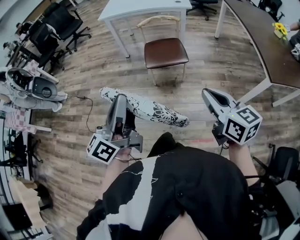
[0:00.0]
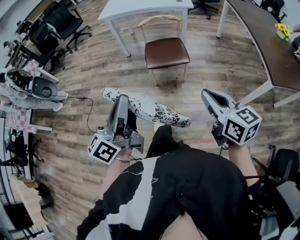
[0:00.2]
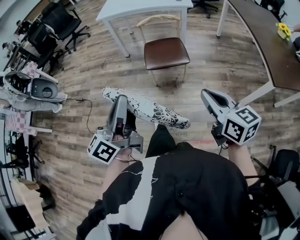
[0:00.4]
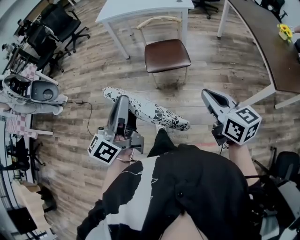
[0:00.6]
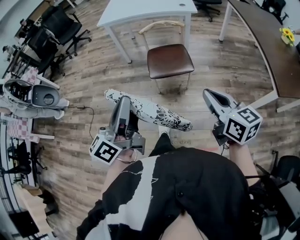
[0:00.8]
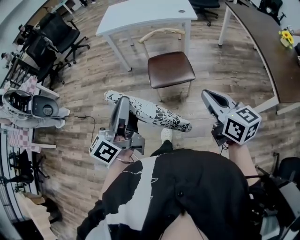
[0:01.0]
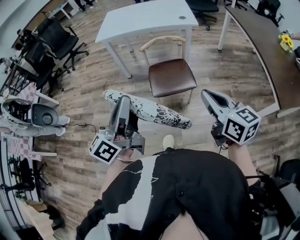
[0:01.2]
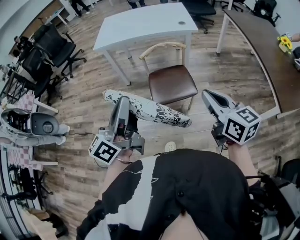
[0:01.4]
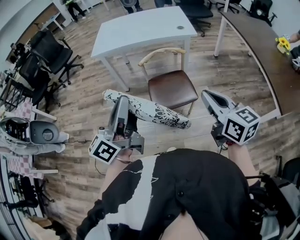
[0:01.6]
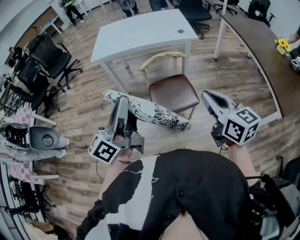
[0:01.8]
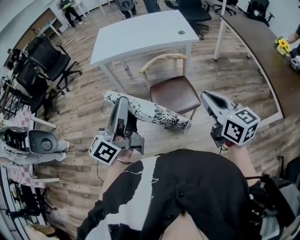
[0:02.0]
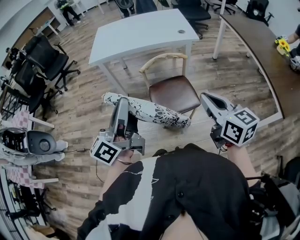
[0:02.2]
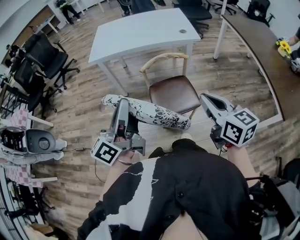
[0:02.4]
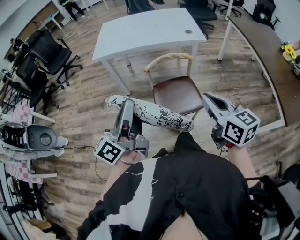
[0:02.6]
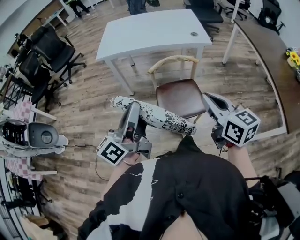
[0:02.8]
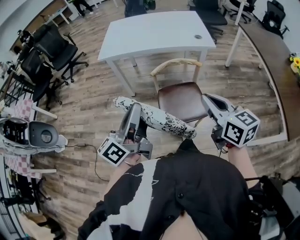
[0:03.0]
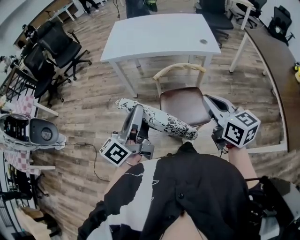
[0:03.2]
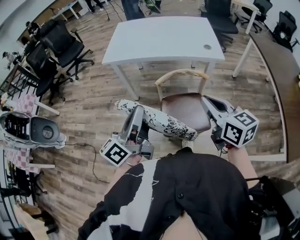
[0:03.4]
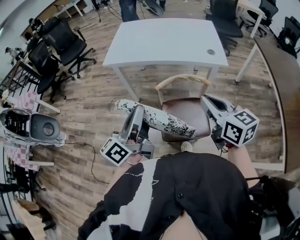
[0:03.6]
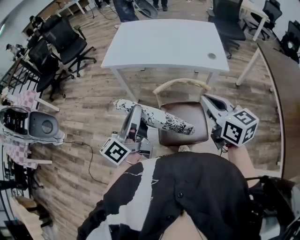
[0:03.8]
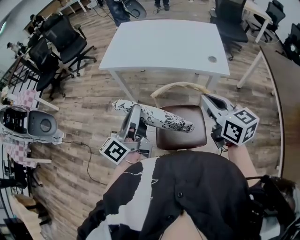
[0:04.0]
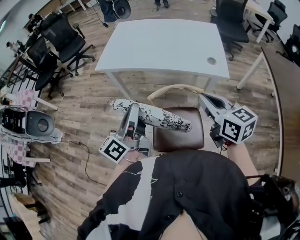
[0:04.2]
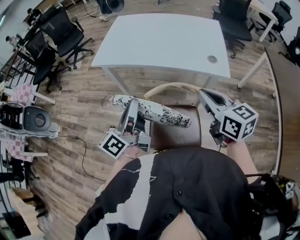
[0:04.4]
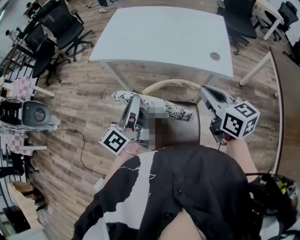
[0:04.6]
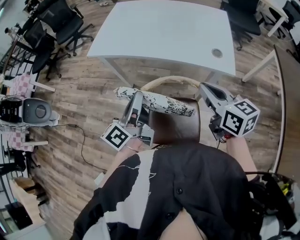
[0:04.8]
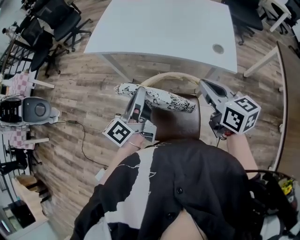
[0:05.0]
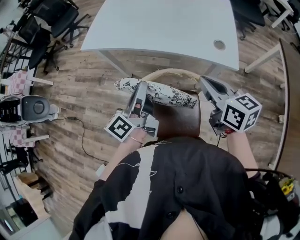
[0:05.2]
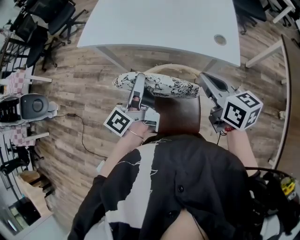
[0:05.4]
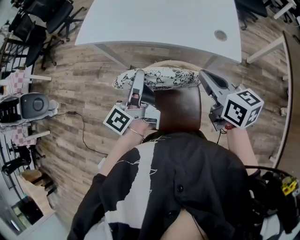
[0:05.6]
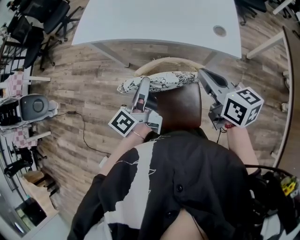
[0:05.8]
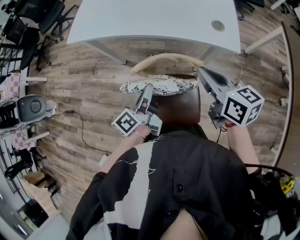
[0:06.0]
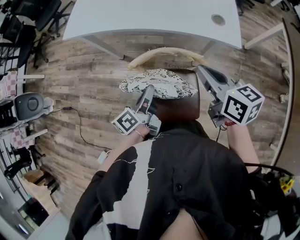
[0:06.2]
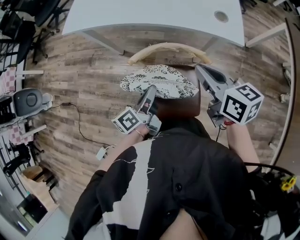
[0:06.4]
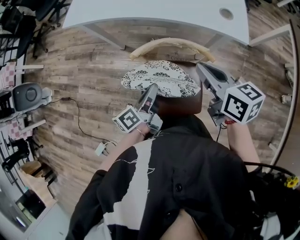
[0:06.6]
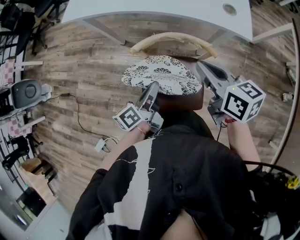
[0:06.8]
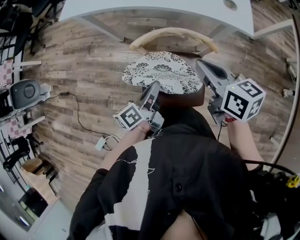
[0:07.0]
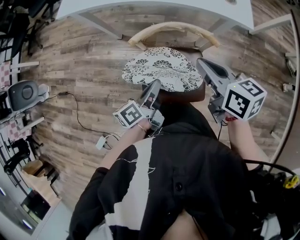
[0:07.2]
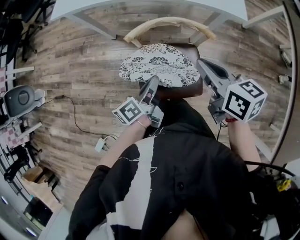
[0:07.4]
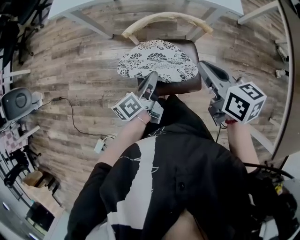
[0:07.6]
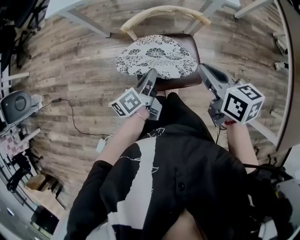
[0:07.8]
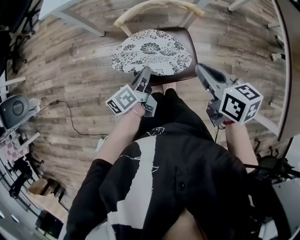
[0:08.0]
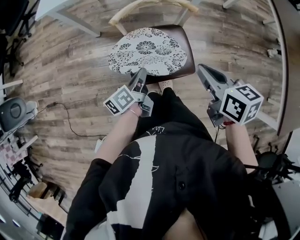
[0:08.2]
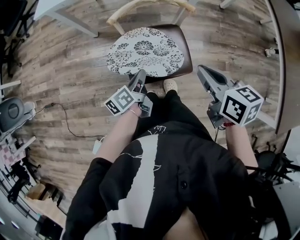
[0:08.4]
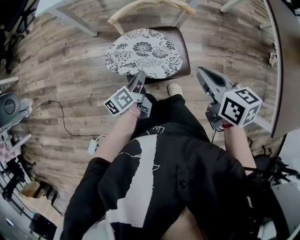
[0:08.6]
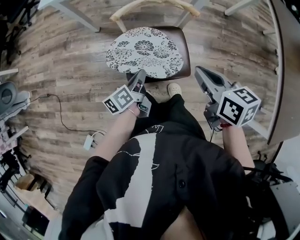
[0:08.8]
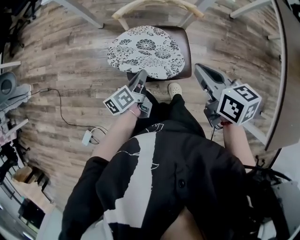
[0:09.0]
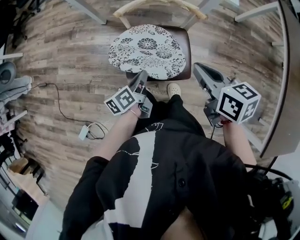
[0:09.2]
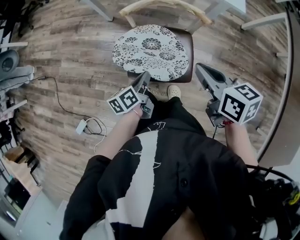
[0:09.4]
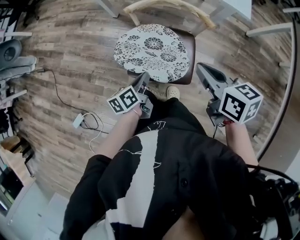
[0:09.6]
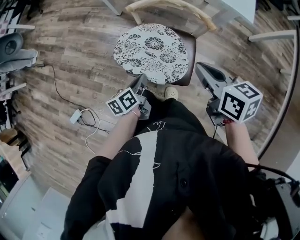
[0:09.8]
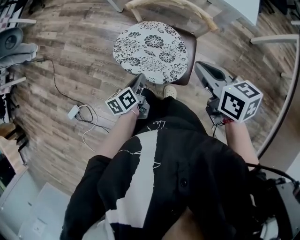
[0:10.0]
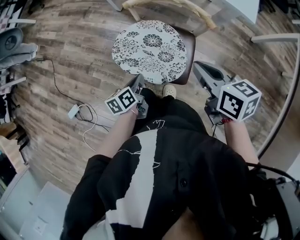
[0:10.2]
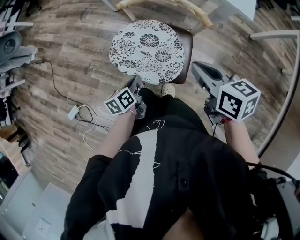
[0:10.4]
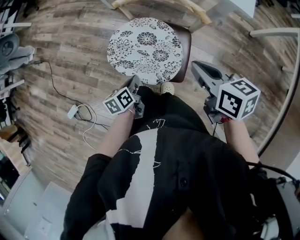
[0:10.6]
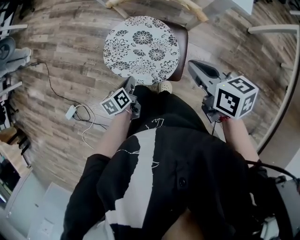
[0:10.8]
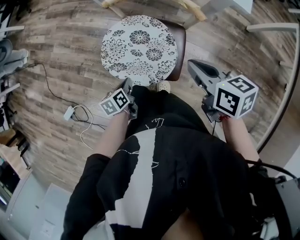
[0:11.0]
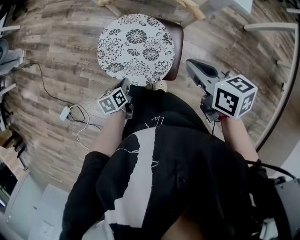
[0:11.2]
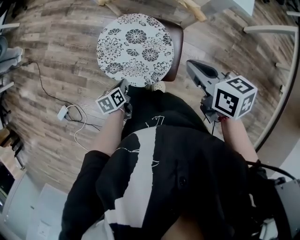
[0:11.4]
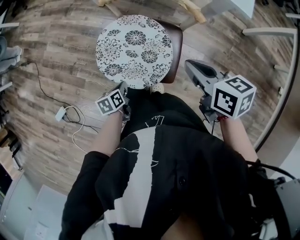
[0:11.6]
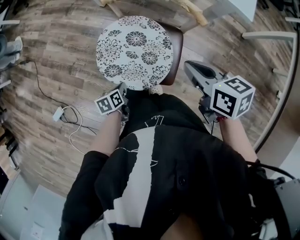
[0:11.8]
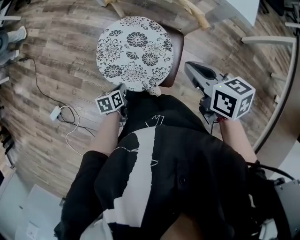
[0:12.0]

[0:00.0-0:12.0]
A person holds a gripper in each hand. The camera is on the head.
0.0 to 1.6 s: The grippers both shift forward by about 35 cm.
1.6 to 3.0 s: The right gripper is displaced forward by roughly 15 cm. The left gripper is displaced forward and downward by roughly 15 cm.
3.0 to 4.4 s: The grippers both shift forward and to the right by roughly 25 cm.
4.4 to 6.0 s: The left gripper travels downward and to the right by some 20 cm, and turns by roughly 30 degrees; the right gripper shifts approximately 15 cm downward, forward and to the right.
6.0 to 7.6 s: The right gripper shifts approximately 15 cm backward, downward and to the left. Meanwhile the left gripper moves backward and downward, approximately 15 cm.
7.6 to 9.0 s: The left gripper moves backward and downward, some 10 cm; the right gripper is displaced backward by about 10 cm.
9.0 to 10.4 s: The right gripper shifts some 5 cm to the right, and rotates some 20 degrees. The left gripper is displaced downward by about 5 cm, and changes its angle by some 20 degrees.
10.4 to 12.0 s: The left gripper shifts about 10 cm downward.

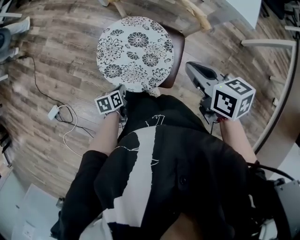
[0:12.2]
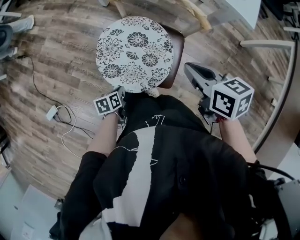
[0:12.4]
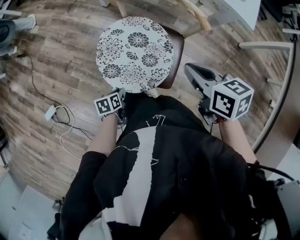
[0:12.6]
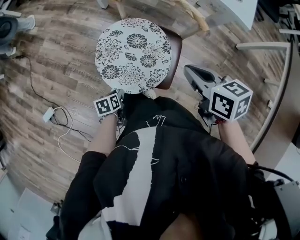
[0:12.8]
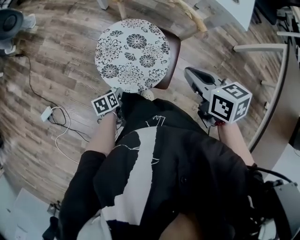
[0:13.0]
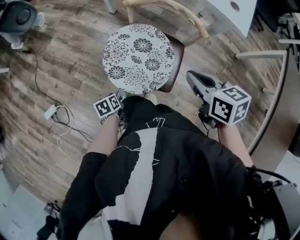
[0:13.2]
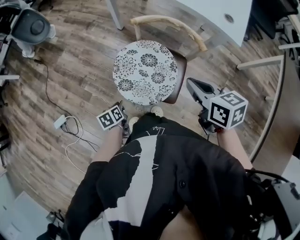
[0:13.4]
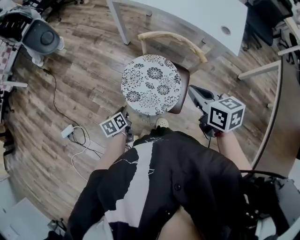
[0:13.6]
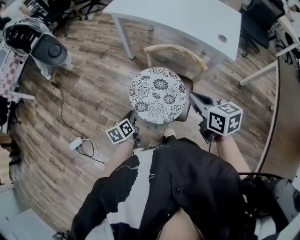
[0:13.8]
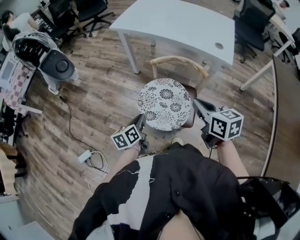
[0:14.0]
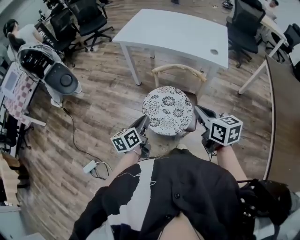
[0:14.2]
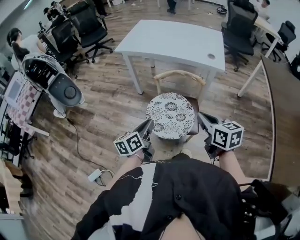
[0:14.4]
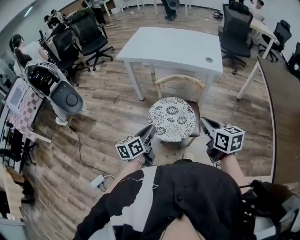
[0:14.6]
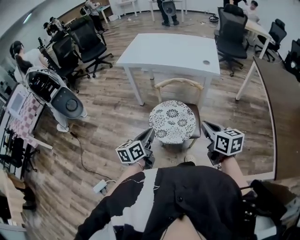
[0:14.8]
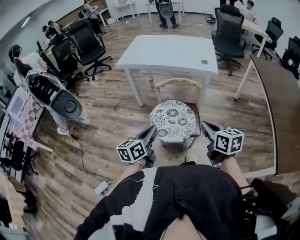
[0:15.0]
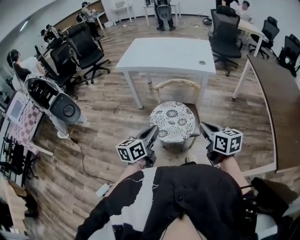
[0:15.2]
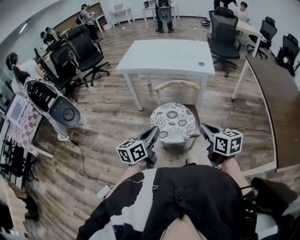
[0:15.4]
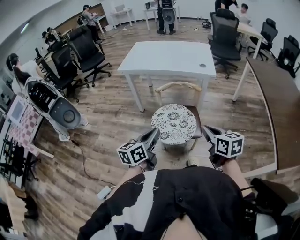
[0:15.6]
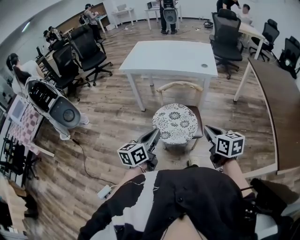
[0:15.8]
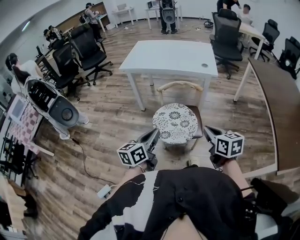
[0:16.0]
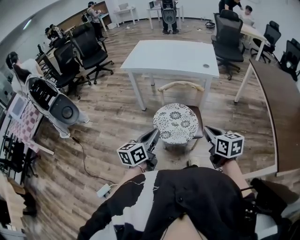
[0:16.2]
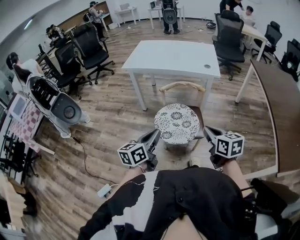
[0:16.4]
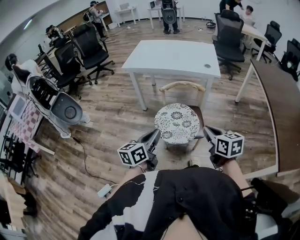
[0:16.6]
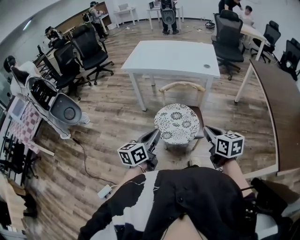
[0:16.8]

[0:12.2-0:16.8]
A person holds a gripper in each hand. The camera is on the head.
12.2 to 13.8 s: The left gripper is displaced upward by some 20 cm, rotates roughly 20 degrees, and opens, then closes again, while the right gripper heads upward and to the left, covering about 15 cm.
13.8 to 15.2 s: The left gripper travels upward by roughly 25 cm, and rotates roughly 50 degrees. The right gripper moves approximately 25 cm, and swivels approximately 30 degrees.
15.2 to 16.8 s: There are only small adjustments of the grippers.

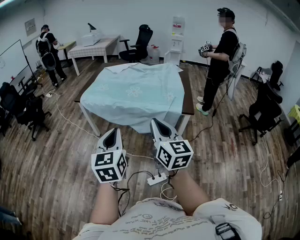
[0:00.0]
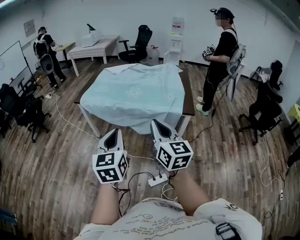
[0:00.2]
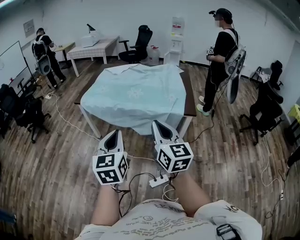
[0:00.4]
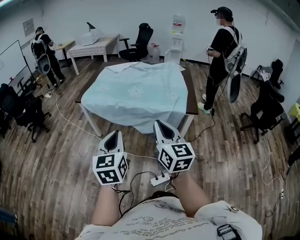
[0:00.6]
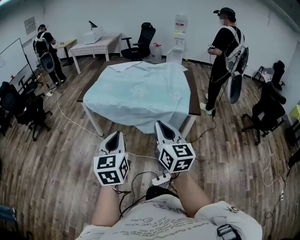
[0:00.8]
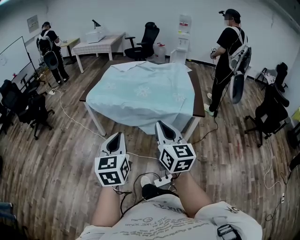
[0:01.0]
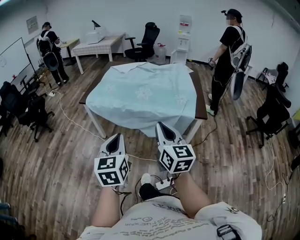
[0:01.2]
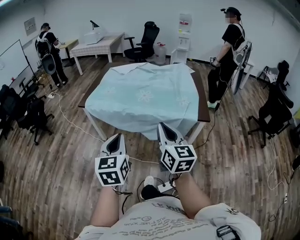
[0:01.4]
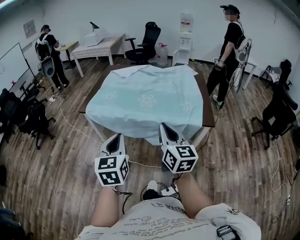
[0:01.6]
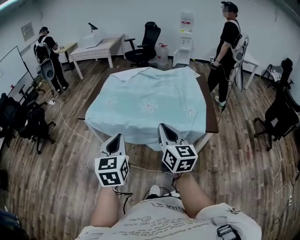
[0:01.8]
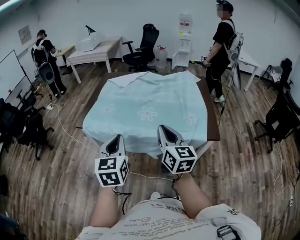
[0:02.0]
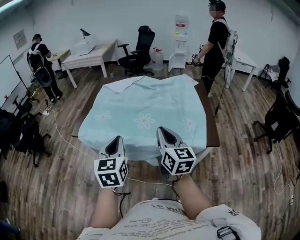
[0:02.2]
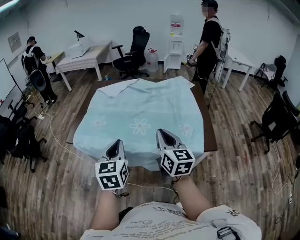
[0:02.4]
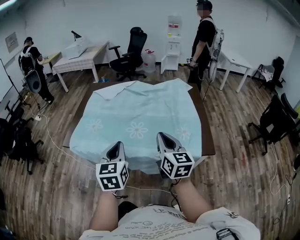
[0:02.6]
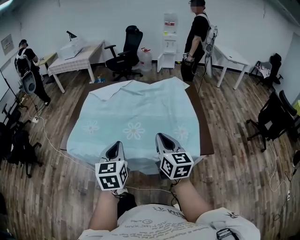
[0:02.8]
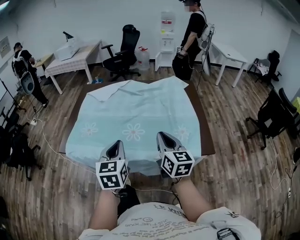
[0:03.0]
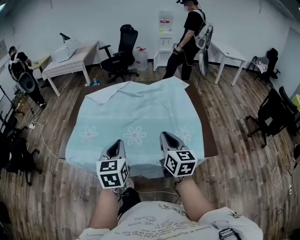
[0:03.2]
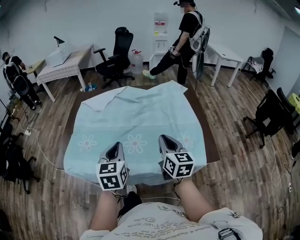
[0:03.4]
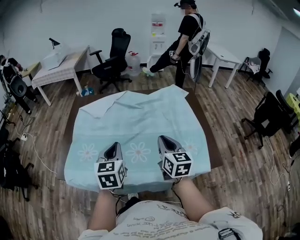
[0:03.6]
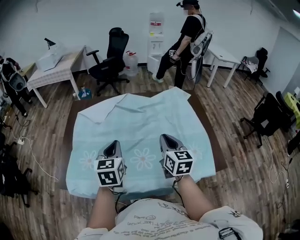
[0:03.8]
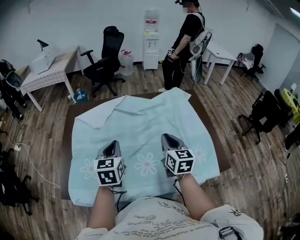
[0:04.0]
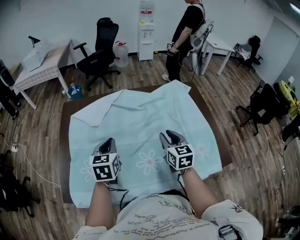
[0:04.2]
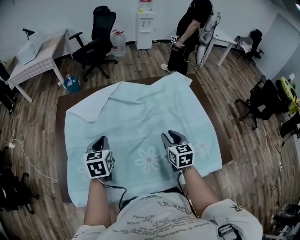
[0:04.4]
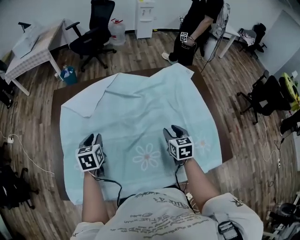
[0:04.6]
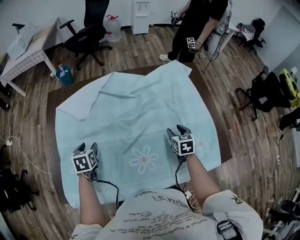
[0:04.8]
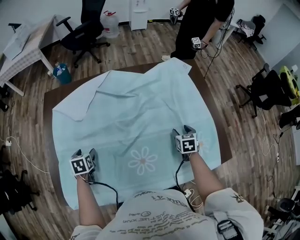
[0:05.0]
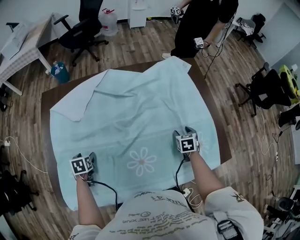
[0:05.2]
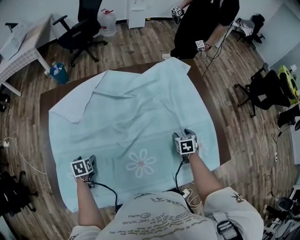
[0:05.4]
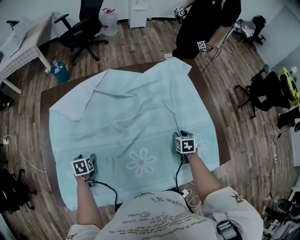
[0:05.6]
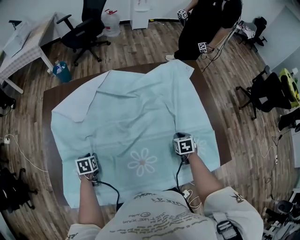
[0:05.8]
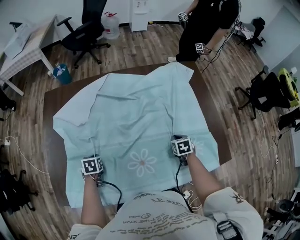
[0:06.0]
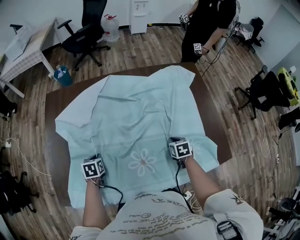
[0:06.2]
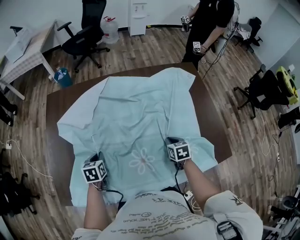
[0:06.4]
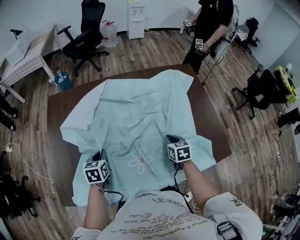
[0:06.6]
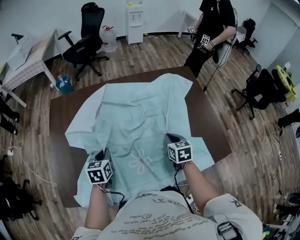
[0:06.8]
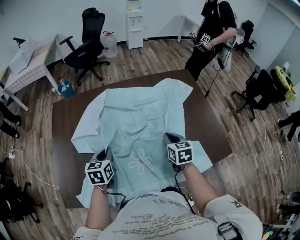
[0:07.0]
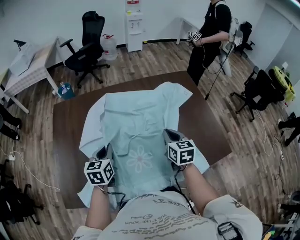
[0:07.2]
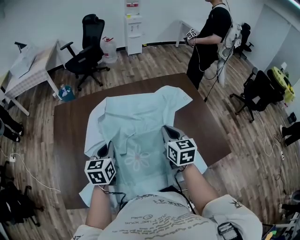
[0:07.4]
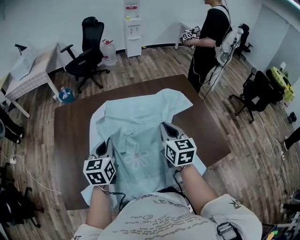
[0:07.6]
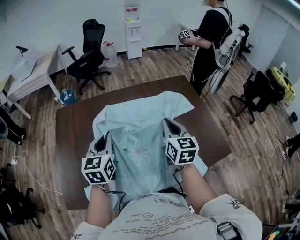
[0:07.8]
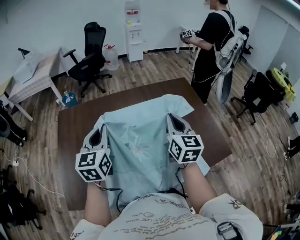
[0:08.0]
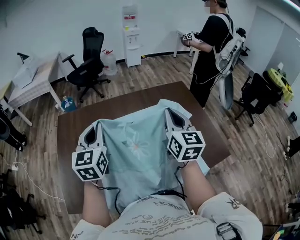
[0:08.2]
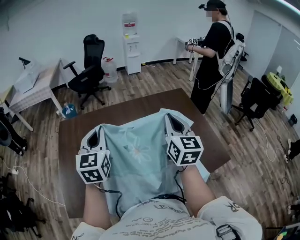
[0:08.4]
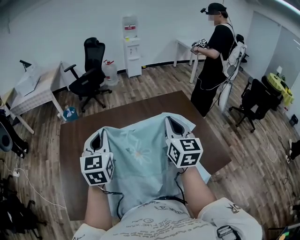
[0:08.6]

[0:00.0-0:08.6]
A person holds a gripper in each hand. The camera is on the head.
0.0 to 1.4 s: The right gripper heads forward, covering about 10 cm; the left gripper travels forward and to the left by some 15 cm.
1.4 to 2.8 s: The two grippers go some 35 cm forward.
2.8 to 4.4 s: The left gripper heads forward and to the left, covering about 40 cm. Meanwhile the right gripper shifts about 35 cm forward and downward, swivels some 30 degrees, and opens up.
4.4 to 5.8 s: The left gripper shifts about 25 cm downward, tips its fingers downward by roughly 30 degrees, and opens its fingers, while the right gripper shifts about 25 cm downward and to the right, tips its fingers downward by some 30 degrees, and opens, then closes again.
5.8 to 7.2 s: The right gripper heads upward and to the left, covering some 25 cm, and tilts its fingers about 30 degrees upward. Meanwhile the left gripper moves upward and to the right, some 25 cm, tilts its fingers approximately 40 degrees upward, and closes up.
7.2 to 8.6 s: Both grippers travel together upward, roughly 20 cm. The right gripper changes its angle by roughly 30 degrees. Meanwhile the left gripper rotates some 30 degrees.
